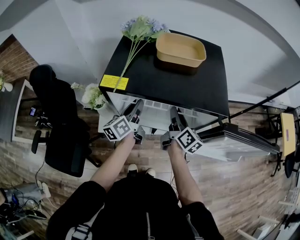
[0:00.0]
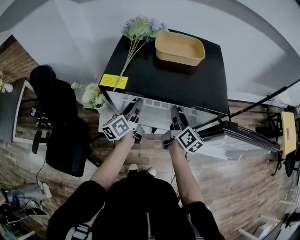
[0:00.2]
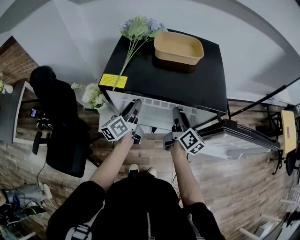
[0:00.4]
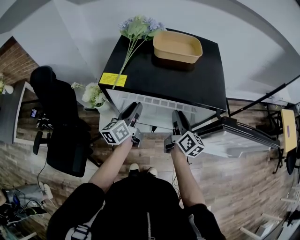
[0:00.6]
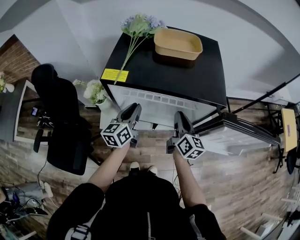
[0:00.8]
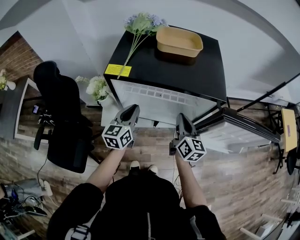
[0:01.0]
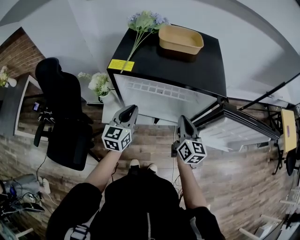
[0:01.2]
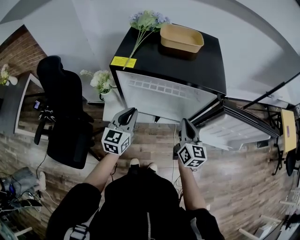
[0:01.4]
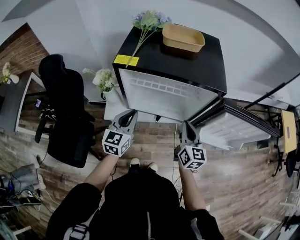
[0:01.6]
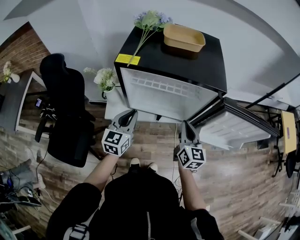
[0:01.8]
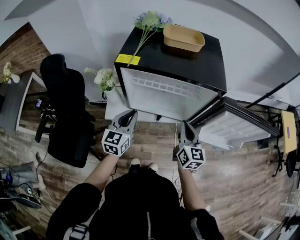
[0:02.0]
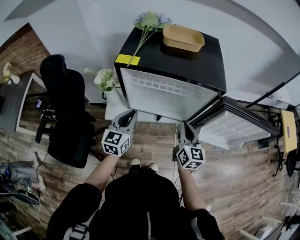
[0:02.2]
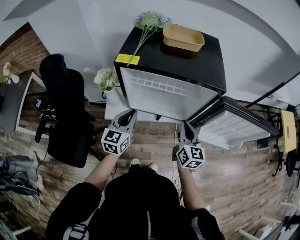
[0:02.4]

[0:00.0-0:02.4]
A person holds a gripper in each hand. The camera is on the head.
0.0 to 1.2 s: The two grippers go some 10 cm backward. The left gripper swivels roughly 40 degrees, and closes its fingers; the right gripper rotates some 30 degrees, and closes up.
1.2 to 2.4 s: There are only small adjustments of the grippers.

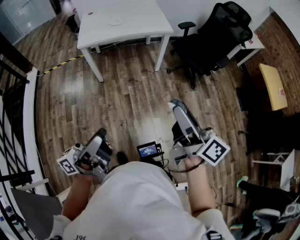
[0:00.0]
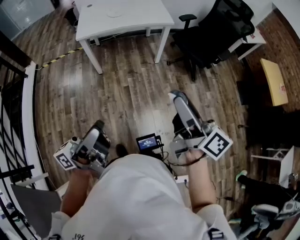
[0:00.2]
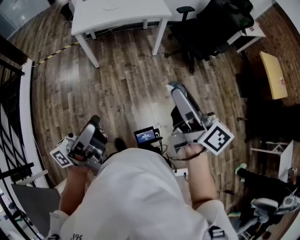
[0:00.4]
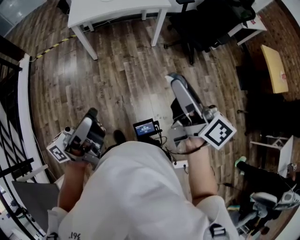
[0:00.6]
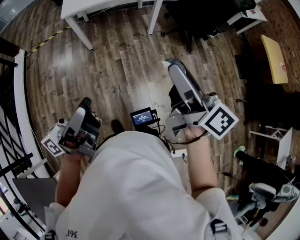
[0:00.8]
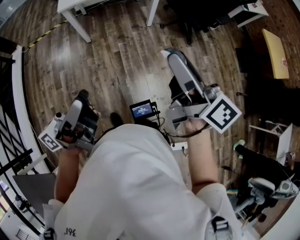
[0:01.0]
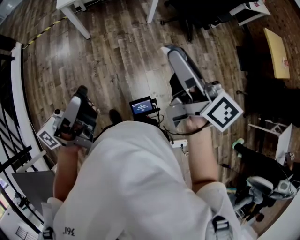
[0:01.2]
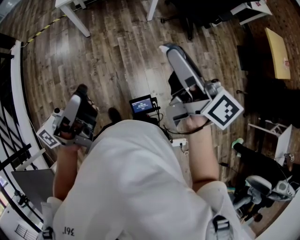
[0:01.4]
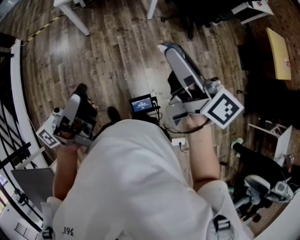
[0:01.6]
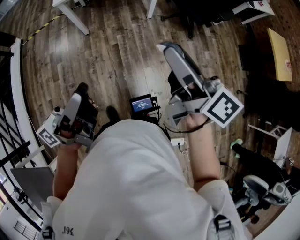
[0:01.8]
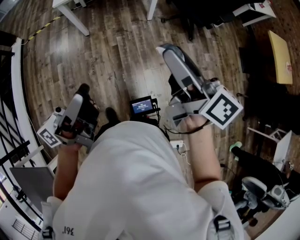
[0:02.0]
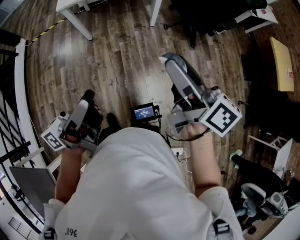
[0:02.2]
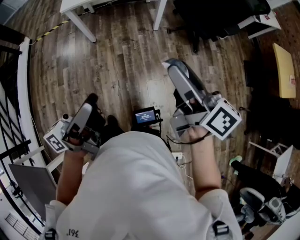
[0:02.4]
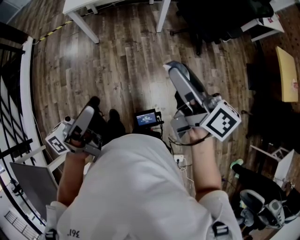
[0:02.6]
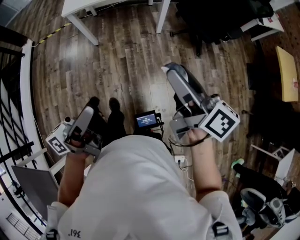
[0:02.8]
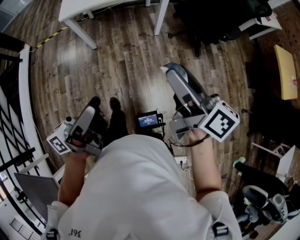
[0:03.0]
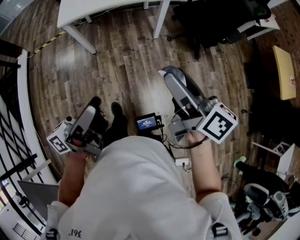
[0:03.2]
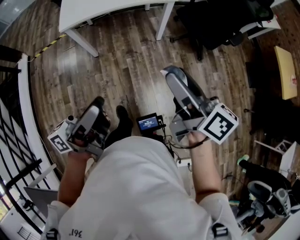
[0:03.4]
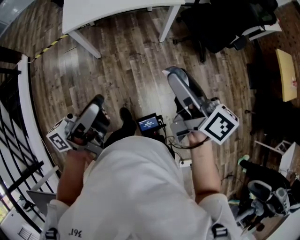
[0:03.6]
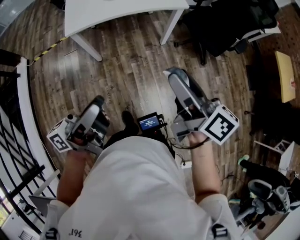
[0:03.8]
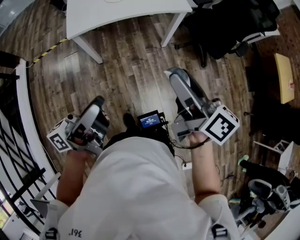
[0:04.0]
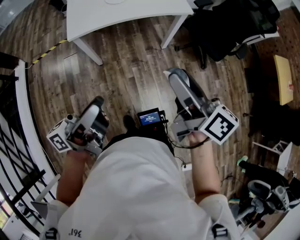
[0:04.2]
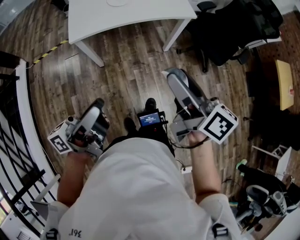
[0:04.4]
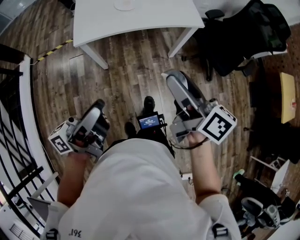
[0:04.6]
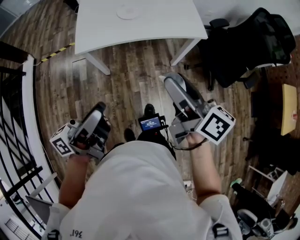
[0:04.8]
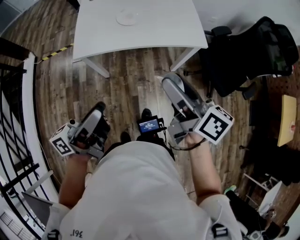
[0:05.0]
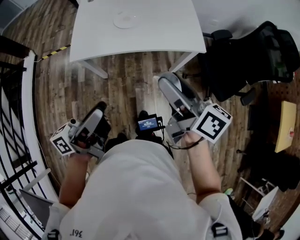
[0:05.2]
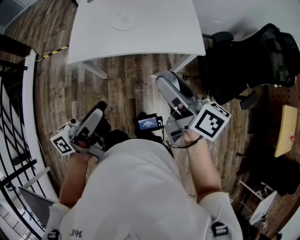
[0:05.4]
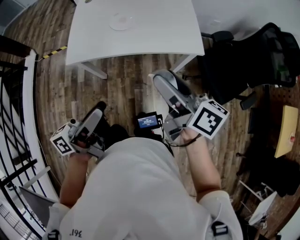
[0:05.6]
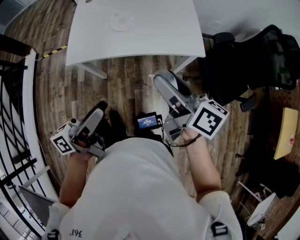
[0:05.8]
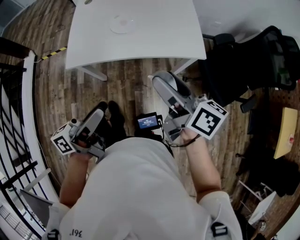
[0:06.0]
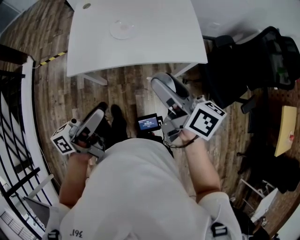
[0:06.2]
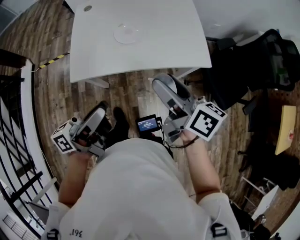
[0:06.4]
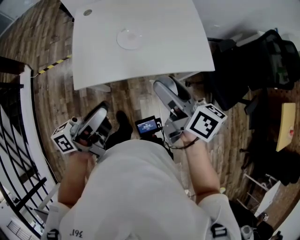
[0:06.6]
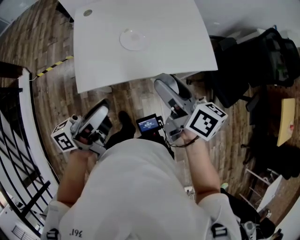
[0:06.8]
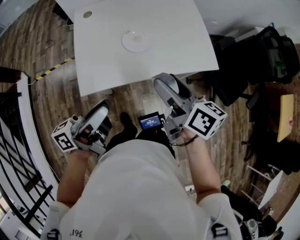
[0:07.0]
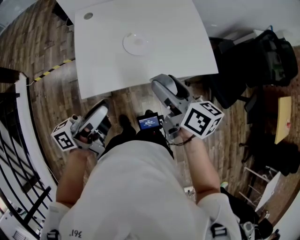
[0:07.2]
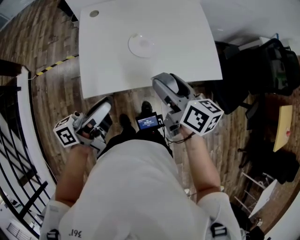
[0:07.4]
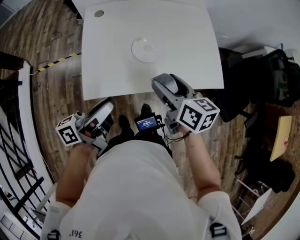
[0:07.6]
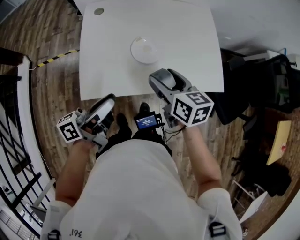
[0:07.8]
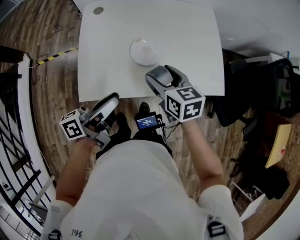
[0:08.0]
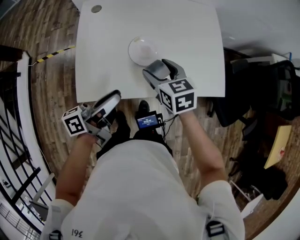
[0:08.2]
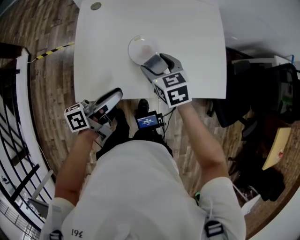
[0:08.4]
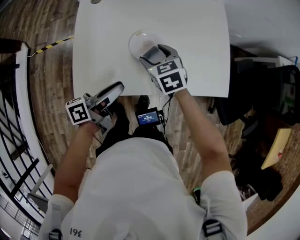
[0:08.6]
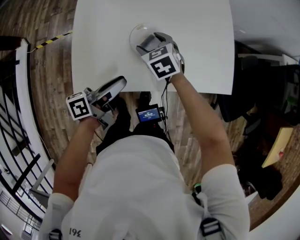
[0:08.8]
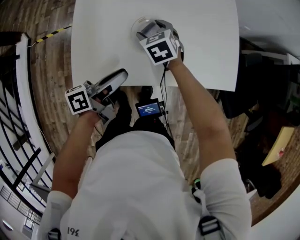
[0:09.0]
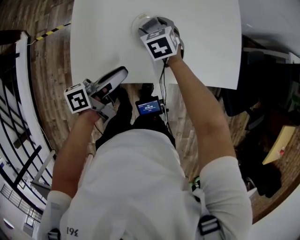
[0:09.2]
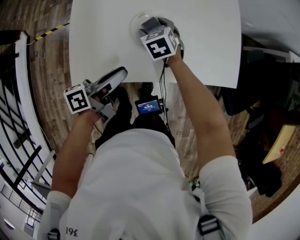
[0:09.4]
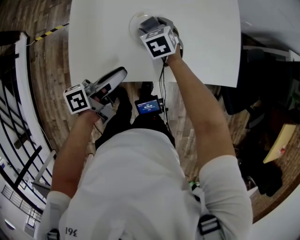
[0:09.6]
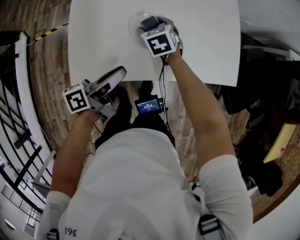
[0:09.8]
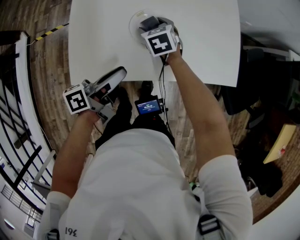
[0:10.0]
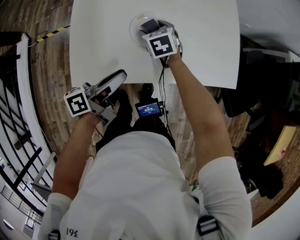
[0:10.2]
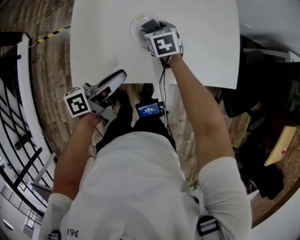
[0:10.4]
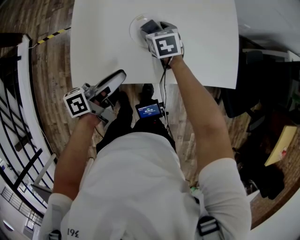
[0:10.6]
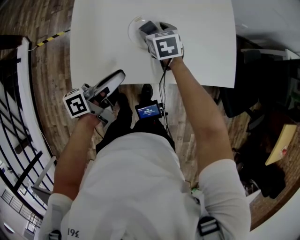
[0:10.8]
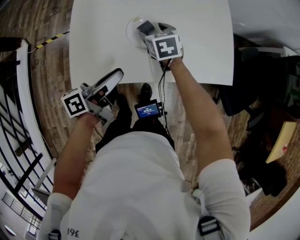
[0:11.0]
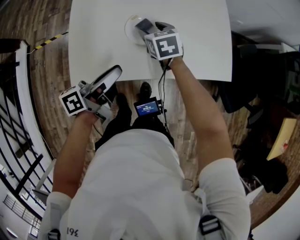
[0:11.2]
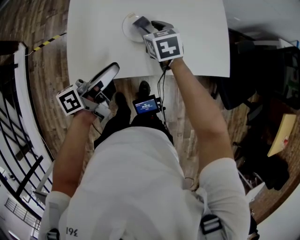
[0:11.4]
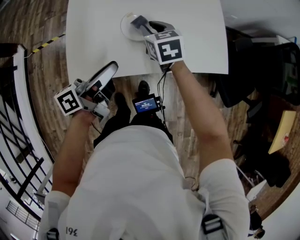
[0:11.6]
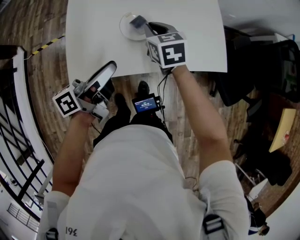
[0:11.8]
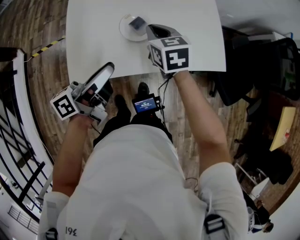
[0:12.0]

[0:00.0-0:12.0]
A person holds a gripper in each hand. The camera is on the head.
0.0 to 1.6 s: The left gripper shifts by approximately 5 cm.
1.6 to 3.0 s: Both grippers move forward, some 10 cm.
3.0 to 4.4 s: Both grippers travel together to the left and forward, roughly 30 cm.
4.4 to 6.0 s: Both grippers move forward, roughly 25 cm.
6.0 to 7.6 s: The left gripper heads forward and to the left, covering approximately 25 cm, while the right gripper moves to the left, forward and downward, approximately 25 cm, and changes its angle by approximately 20 degrees.
7.6 to 9.0 s: The right gripper is displaced forward and downward by roughly 25 cm, and rotates around the line of its fingers by about 40 degrees, counterclockwise from behind. Meanwhile the left gripper is displaced downward and forward by roughly 15 cm.
9.0 to 10.4 s: There are only small adjustments of the grippers.
10.4 to 12.0 s: The left gripper heads upward, covering approximately 10 cm. The right gripper is displaced upward and backward by approximately 15 cm, and closes.

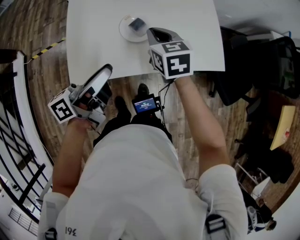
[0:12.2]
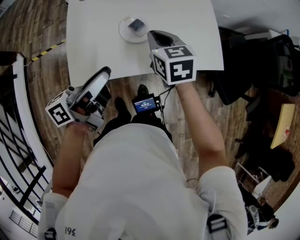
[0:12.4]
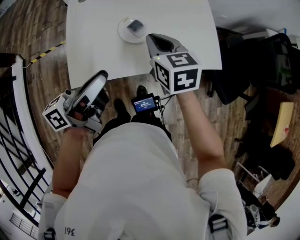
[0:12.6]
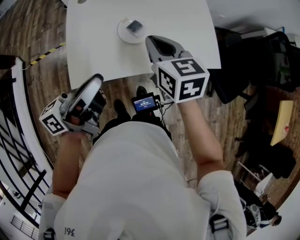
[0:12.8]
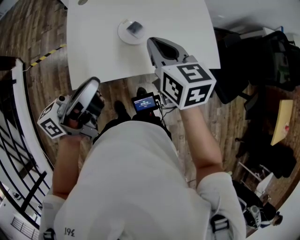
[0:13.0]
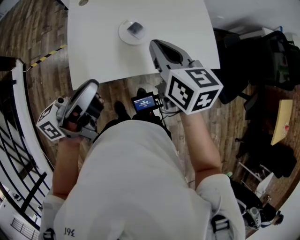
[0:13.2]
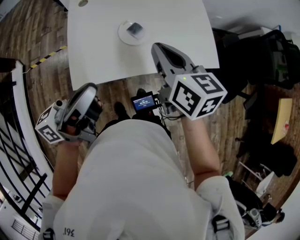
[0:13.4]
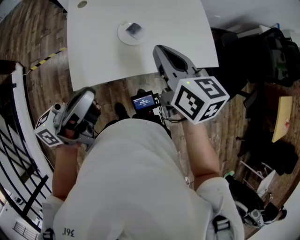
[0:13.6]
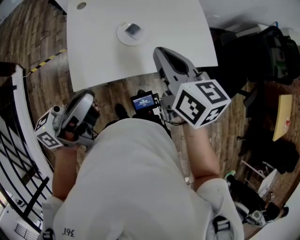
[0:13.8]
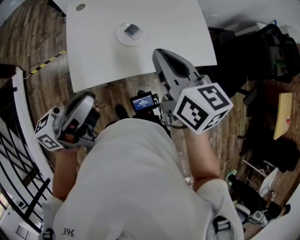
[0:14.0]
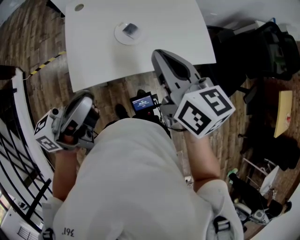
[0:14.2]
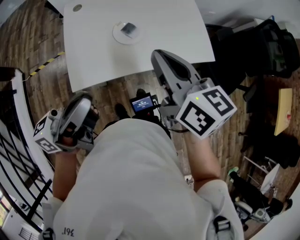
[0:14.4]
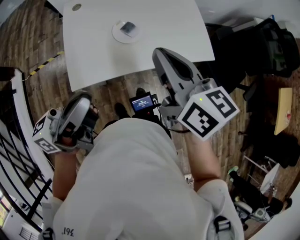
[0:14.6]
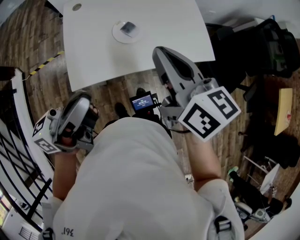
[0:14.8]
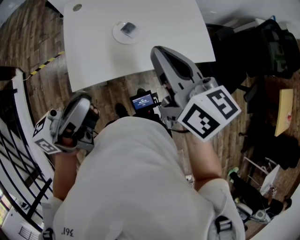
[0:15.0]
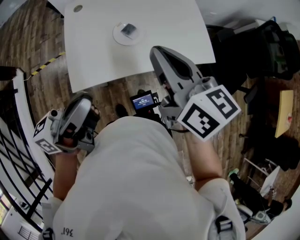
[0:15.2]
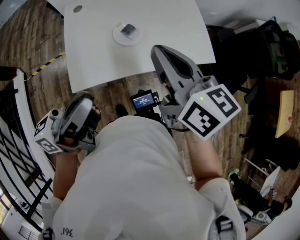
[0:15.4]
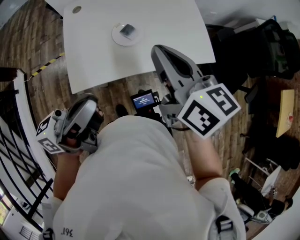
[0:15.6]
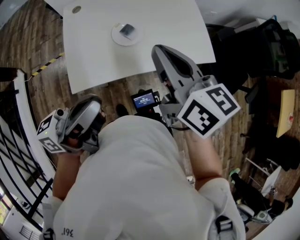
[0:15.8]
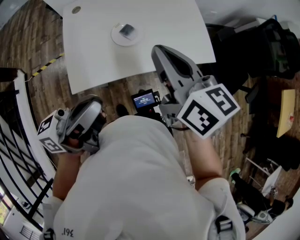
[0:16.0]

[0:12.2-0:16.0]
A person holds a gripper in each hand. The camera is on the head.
12.2 to 13.4 s: The two grippers go about 15 cm upward and backward. The left gripper closes its fingers. Meanwhile the right gripper changes its angle by roughly 20 degrees.
13.4 to 14.8 s: The right gripper heads upward and backward, covering about 10 cm; the left gripper ends up some 5 cm from where it was.
14.8 to 16.0 s: The grippers stay close to where they were, moving slightly.

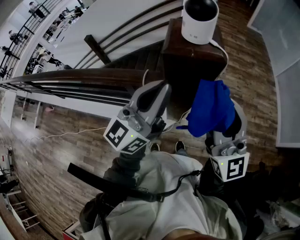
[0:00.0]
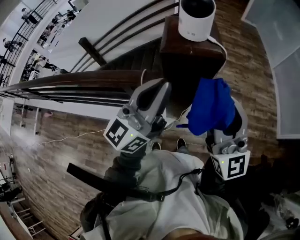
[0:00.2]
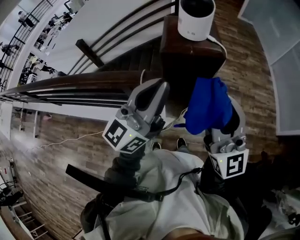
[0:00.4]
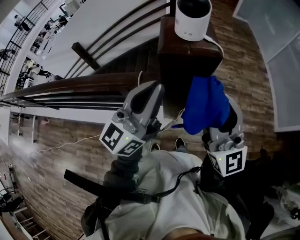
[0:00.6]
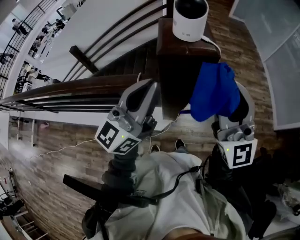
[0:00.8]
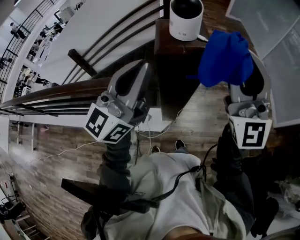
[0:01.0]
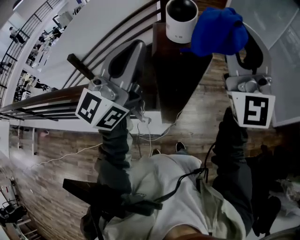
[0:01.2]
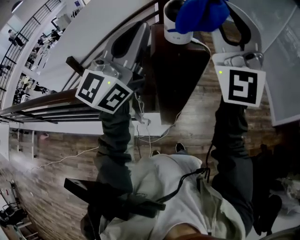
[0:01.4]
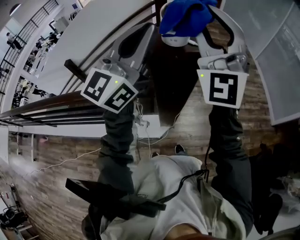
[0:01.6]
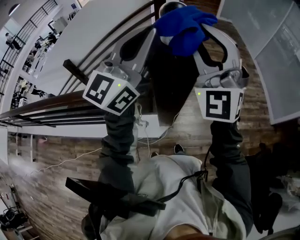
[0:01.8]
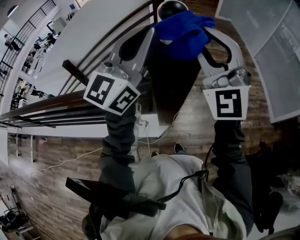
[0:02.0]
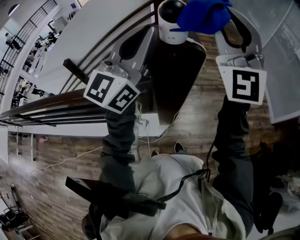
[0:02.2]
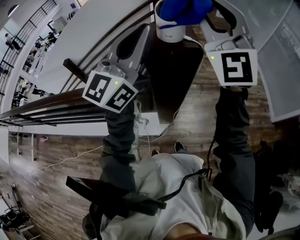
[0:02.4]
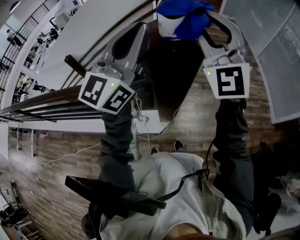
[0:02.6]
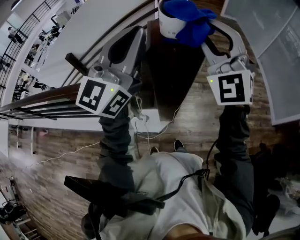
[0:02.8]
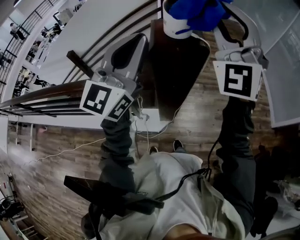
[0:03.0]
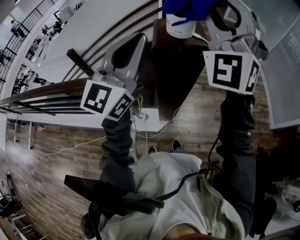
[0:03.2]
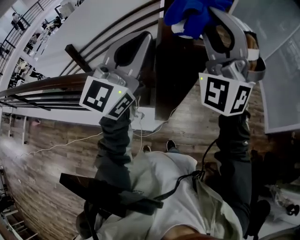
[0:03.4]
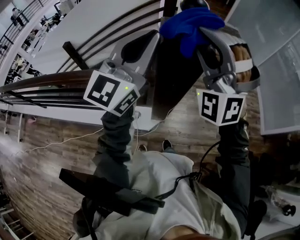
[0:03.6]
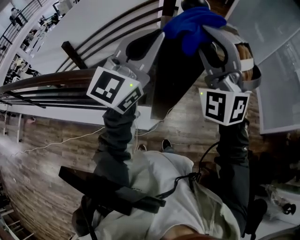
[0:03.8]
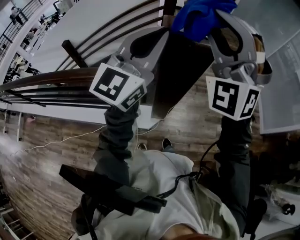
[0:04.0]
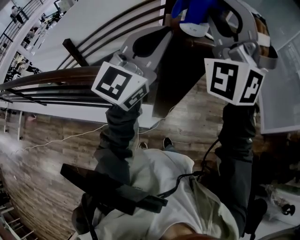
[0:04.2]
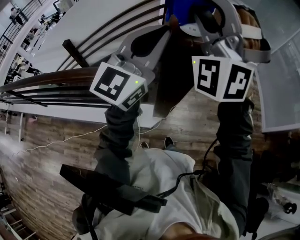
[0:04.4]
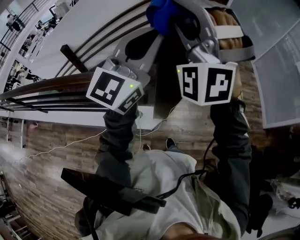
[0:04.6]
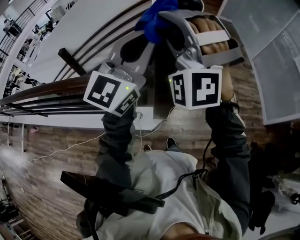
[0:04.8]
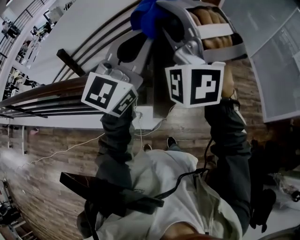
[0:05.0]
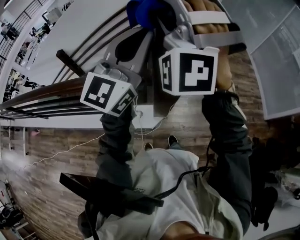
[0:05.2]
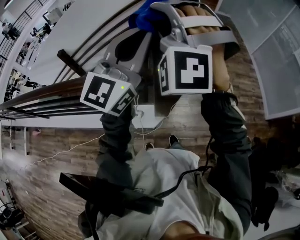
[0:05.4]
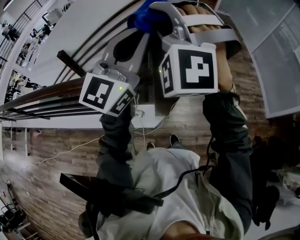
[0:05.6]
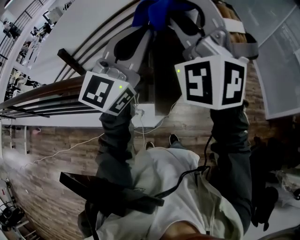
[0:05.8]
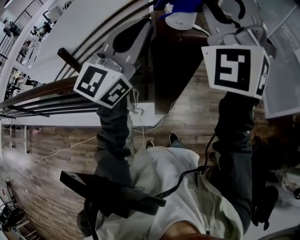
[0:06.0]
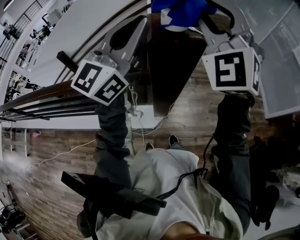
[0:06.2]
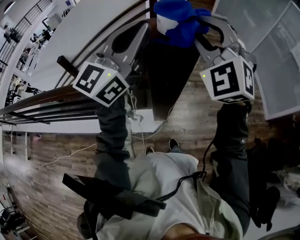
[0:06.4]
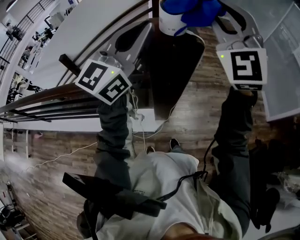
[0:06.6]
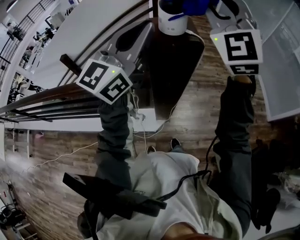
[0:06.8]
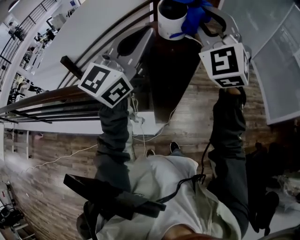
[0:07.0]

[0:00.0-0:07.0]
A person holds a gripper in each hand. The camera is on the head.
0.0 to 1.4 s: The two grippers go roughly 15 cm upward and forward. The right gripper rotates around the line of its fingers by about 50 degrees, counterclockwise from behind.
1.4 to 2.8 s: The right gripper goes up and down, some 10 cm each way, reversing 2 times.
2.8 to 4.2 s: The right gripper goes up and down, roughly 10 cm each way, reversing 2 times, and swivels about 30 degrees.
4.2 to 5.6 s: The right gripper shifts some 10 cm downward and to the left, and turns by about 20 degrees.
5.6 to 7.0 s: The right gripper travels to the right and forward by some 15 cm, and swivels some 30 degrees.
